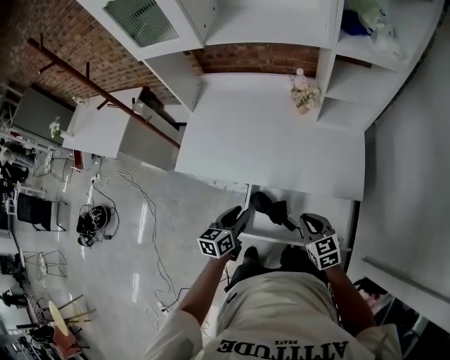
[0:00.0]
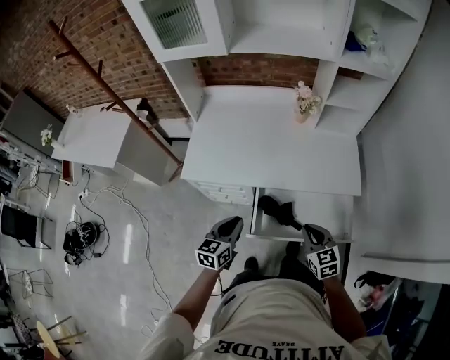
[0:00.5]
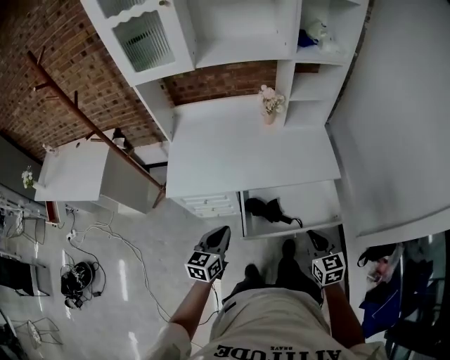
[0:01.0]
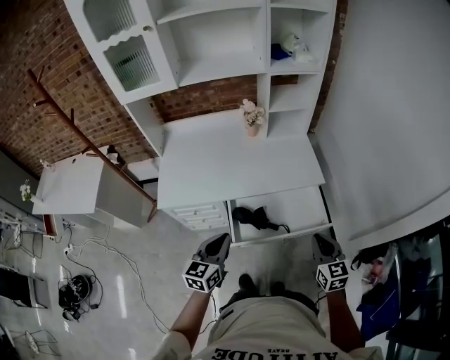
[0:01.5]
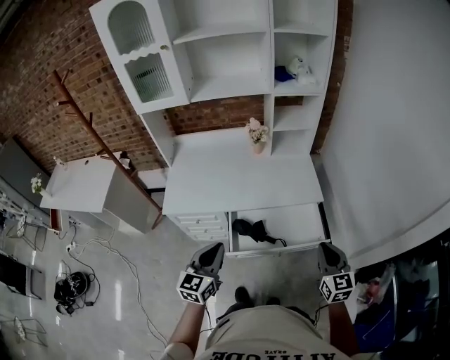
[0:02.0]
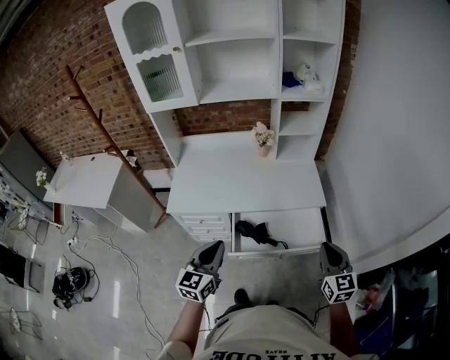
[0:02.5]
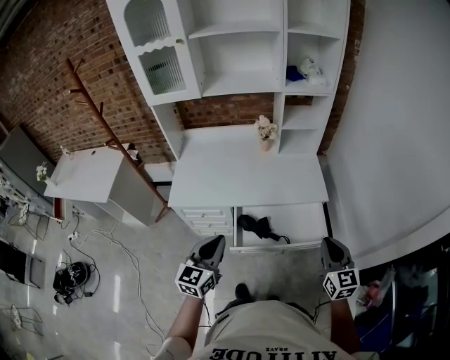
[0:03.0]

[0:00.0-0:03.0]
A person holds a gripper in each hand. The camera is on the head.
0.0 to 1.5 s: The right gripper ends up approximately 25 cm from where it was, and rotates some 40 degrees; the left gripper shifts some 15 cm upward, swivels some 30 degrees, and closes.
1.5 to 3.0 s: The grippers both shift upward by about 10 cm.

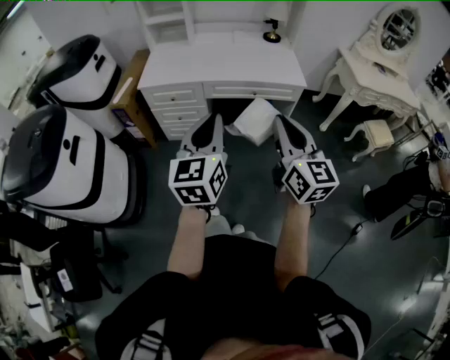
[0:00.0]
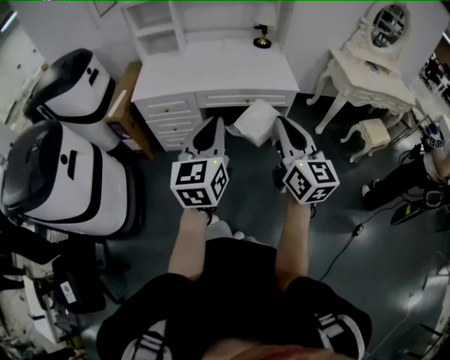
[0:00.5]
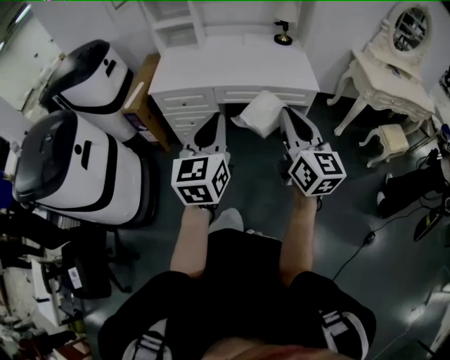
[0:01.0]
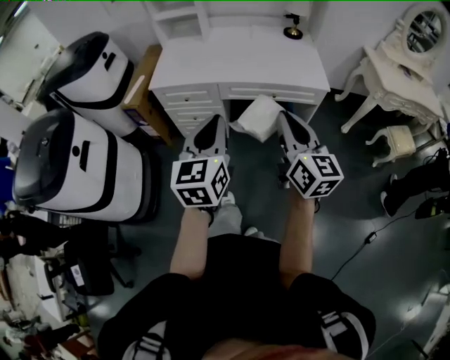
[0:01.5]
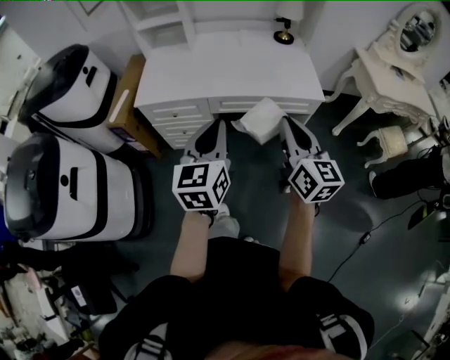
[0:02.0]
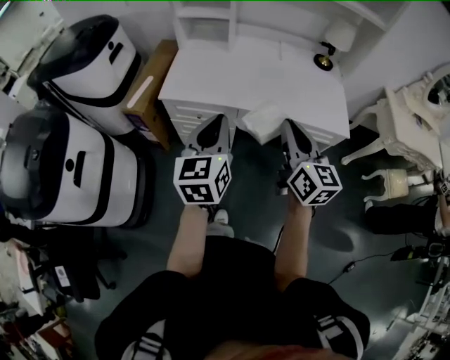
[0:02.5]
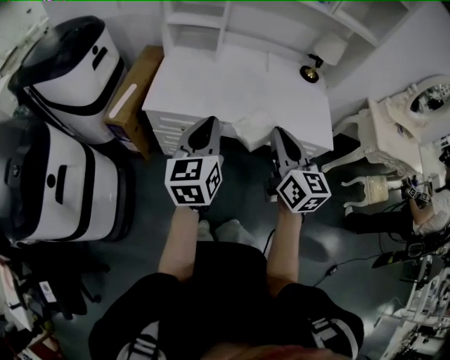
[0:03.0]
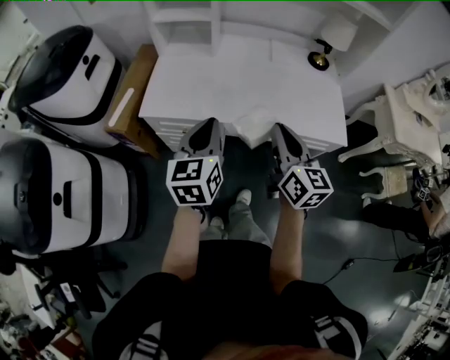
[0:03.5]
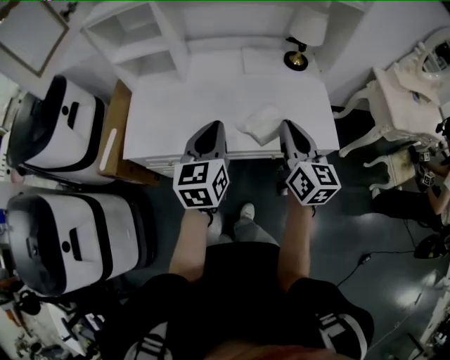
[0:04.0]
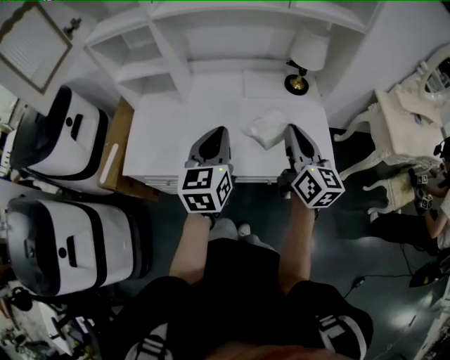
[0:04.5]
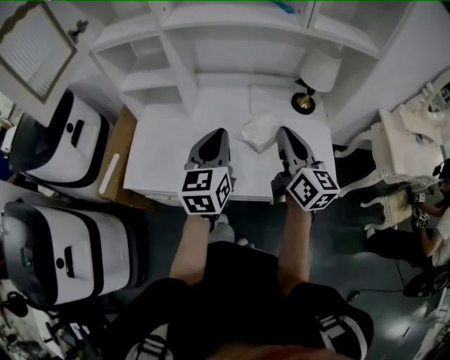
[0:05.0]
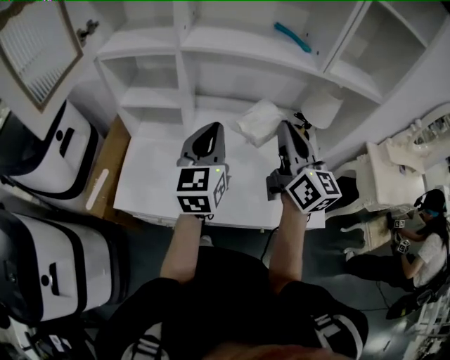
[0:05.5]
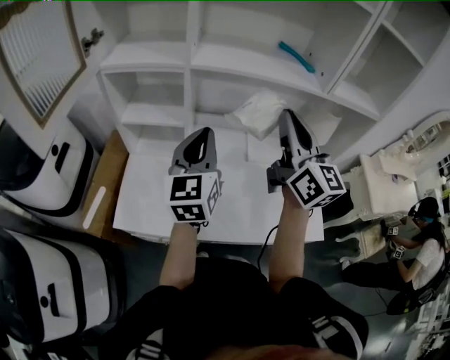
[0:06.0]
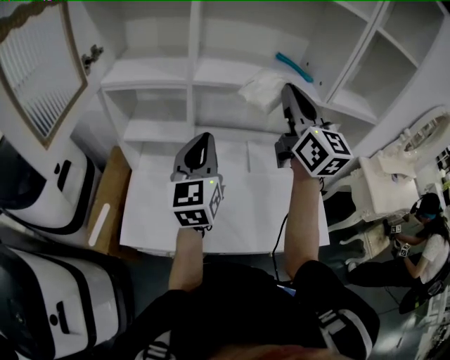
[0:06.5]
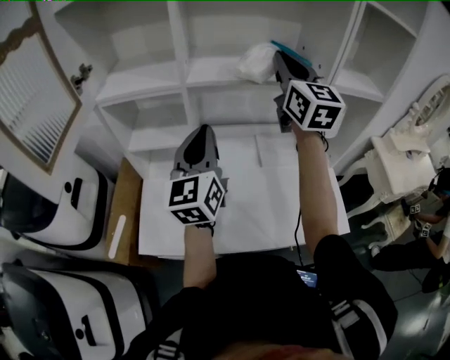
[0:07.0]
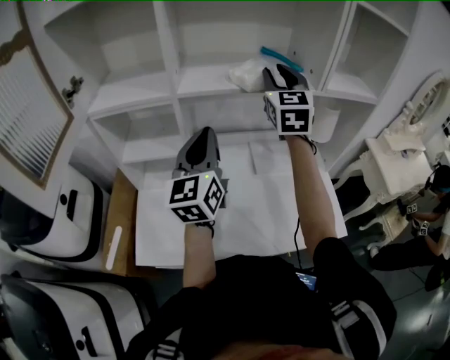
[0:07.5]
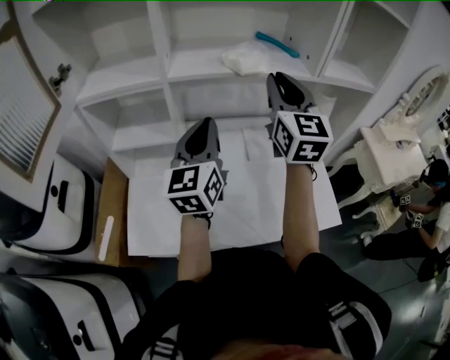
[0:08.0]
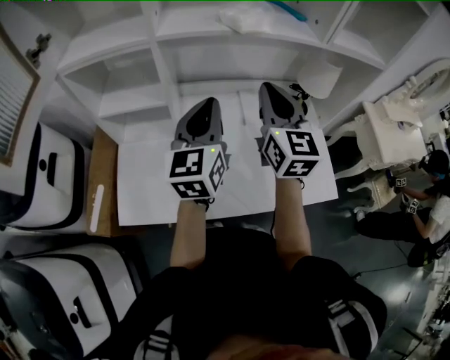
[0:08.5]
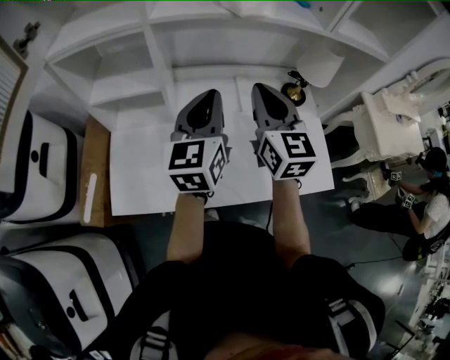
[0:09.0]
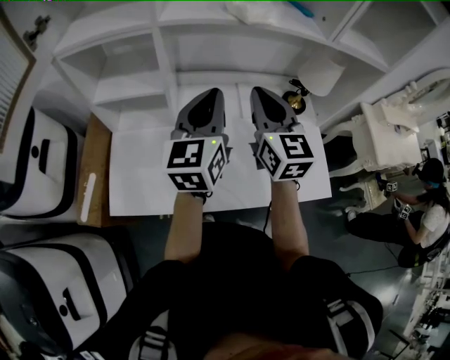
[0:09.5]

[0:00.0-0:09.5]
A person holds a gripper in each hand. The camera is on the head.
0.0 to 2.0 s: Both grippers move forward, some 20 cm.
2.0 to 4.0 s: The grippers both shift forward by roughly 35 cm.
4.0 to 5.5 s: Both grippers move forward and upward, approximately 25 cm.
5.5 to 7.5 s: The left gripper is displaced forward and to the left by about 10 cm. Meanwhile the right gripper goes about 25 cm forward and upward, rotates roughly 40 degrees, and opens up.
7.5 to 9.5 s: The right gripper moves downward and backward, approximately 20 cm, changes its angle by about 20 degrees, and closes; the left gripper moves downward and to the right, about 10 cm.

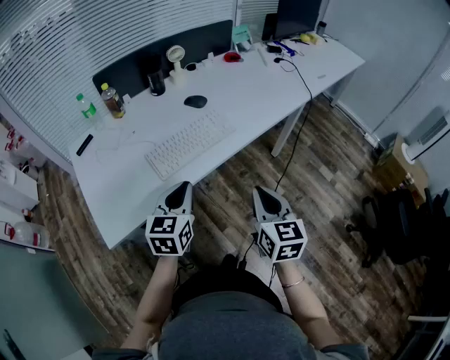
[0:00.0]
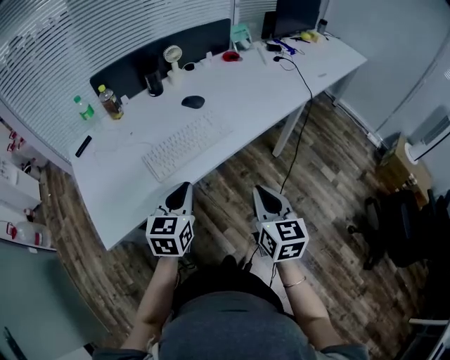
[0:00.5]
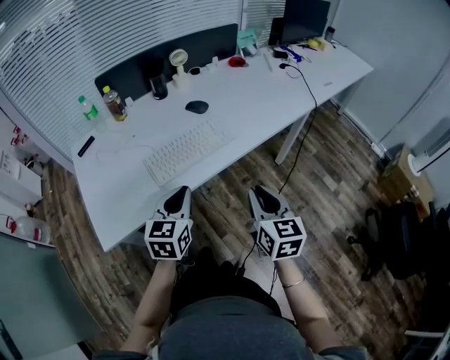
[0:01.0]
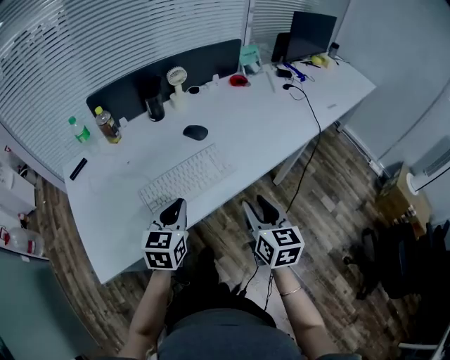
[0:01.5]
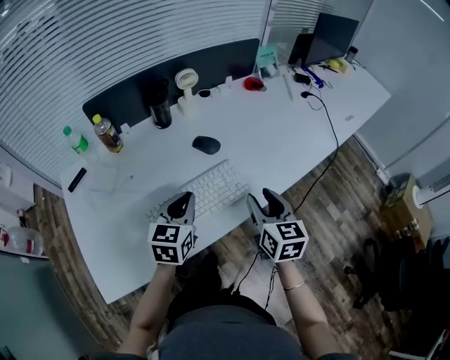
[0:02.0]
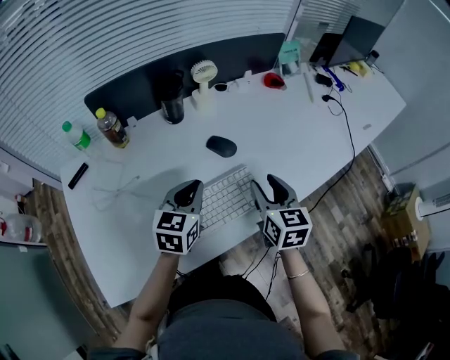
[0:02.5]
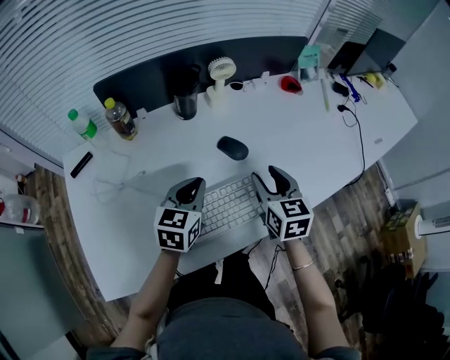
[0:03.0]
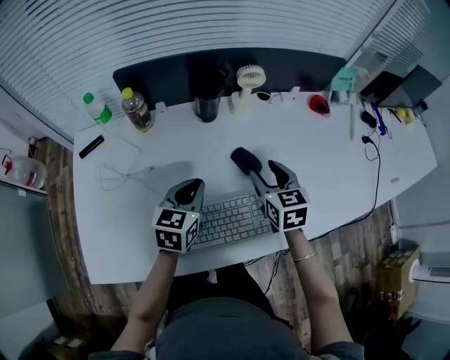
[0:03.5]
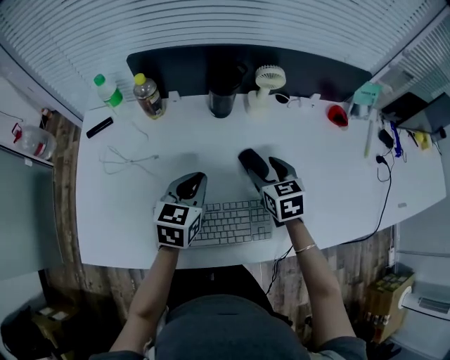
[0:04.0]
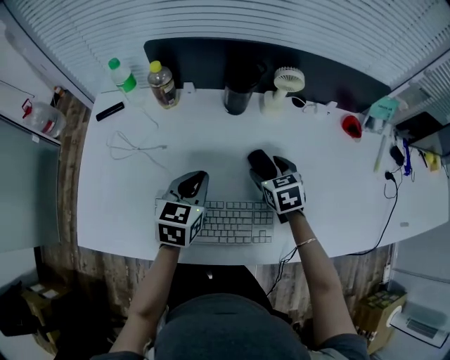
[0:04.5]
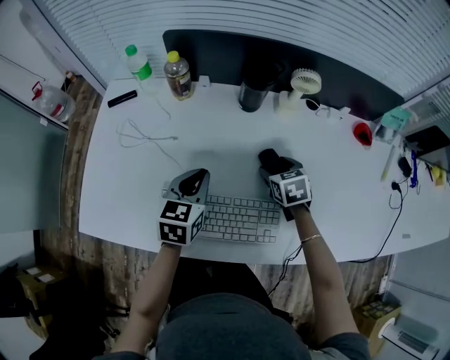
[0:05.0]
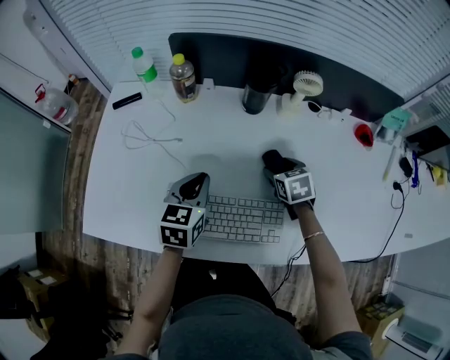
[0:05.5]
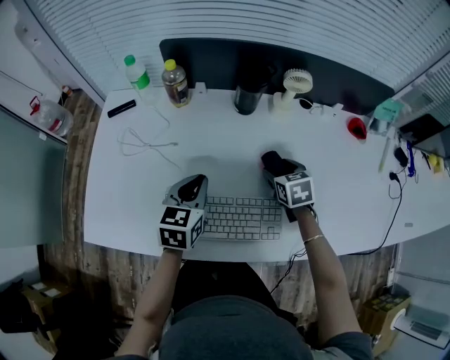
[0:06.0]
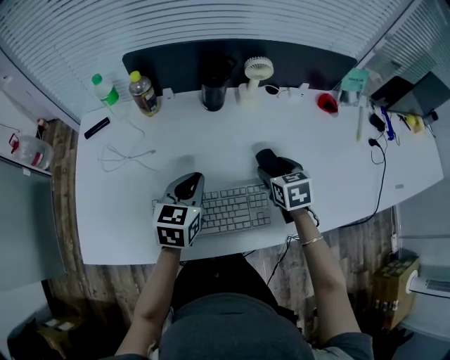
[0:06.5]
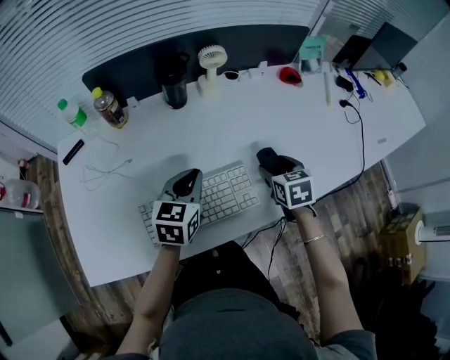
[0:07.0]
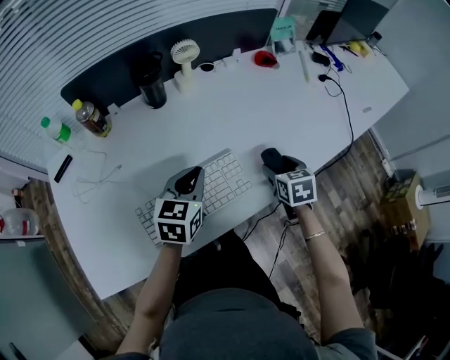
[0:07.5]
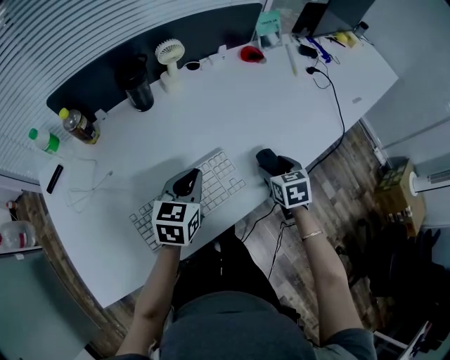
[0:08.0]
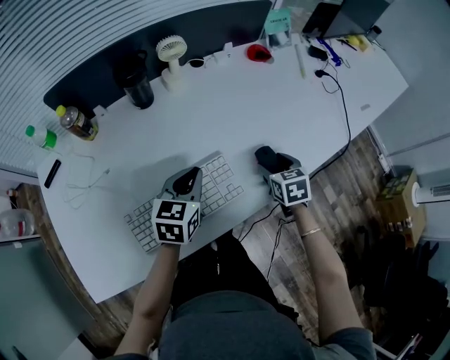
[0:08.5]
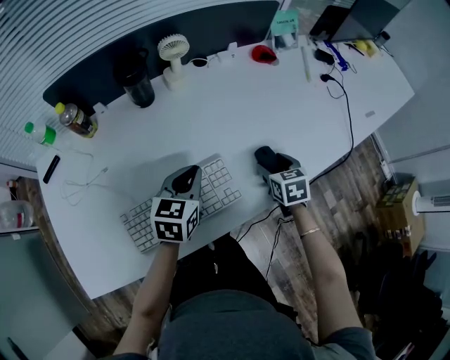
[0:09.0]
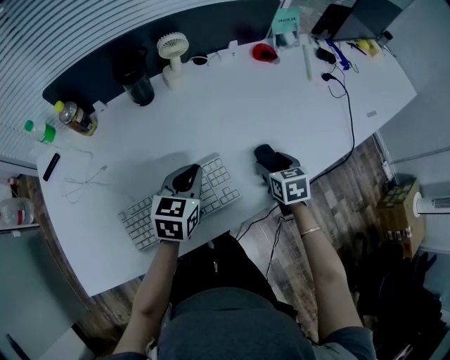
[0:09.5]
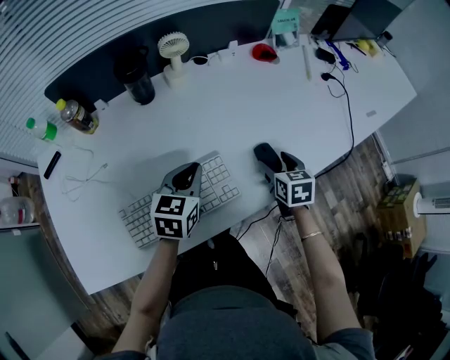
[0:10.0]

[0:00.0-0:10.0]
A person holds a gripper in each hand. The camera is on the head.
0.0 to 2.0 s: The two grippers go roughly 25 cm forward. The right gripper opens.
2.0 to 4.0 s: The right gripper ends up approximately 30 cm from where it was, and changes its angle by some 40 degrees. Meanwhile the left gripper moves roughly 15 cm, and turns by about 20 degrees.
4.0 to 6.0 s: The right gripper shifts approximately 5 cm downward; the left gripper changes place by approximately 5 cm.
6.0 to 8.0 s: The right gripper shifts by some 25 cm, and rotates approximately 40 degrees; the left gripper shifts by about 15 cm, and changes its angle by some 40 degrees.
8.0 to 10.0 s: The right gripper changes place by roughly 5 cm.

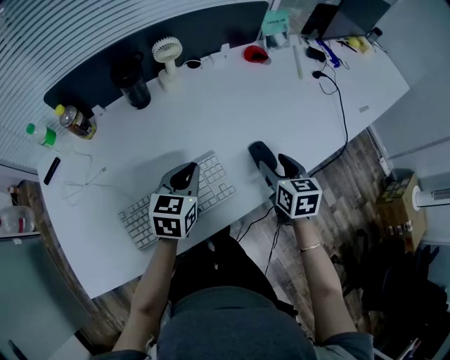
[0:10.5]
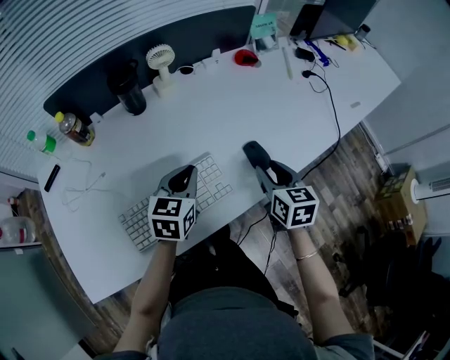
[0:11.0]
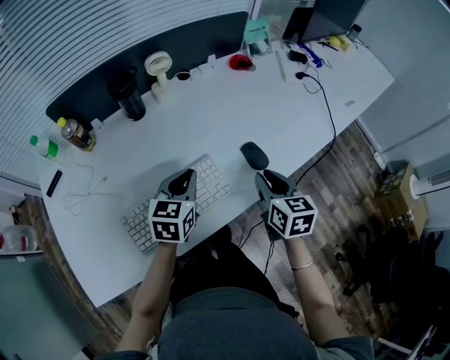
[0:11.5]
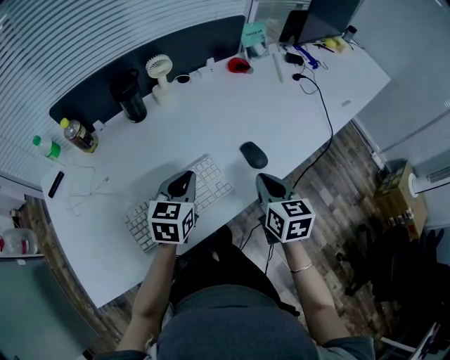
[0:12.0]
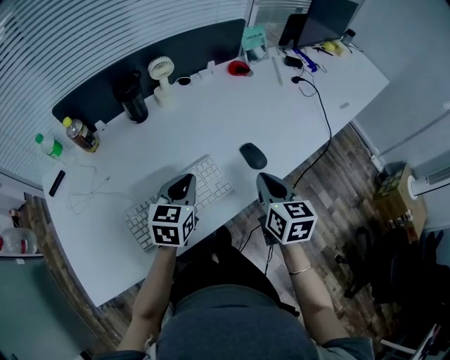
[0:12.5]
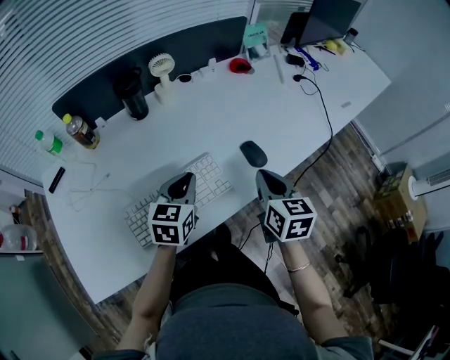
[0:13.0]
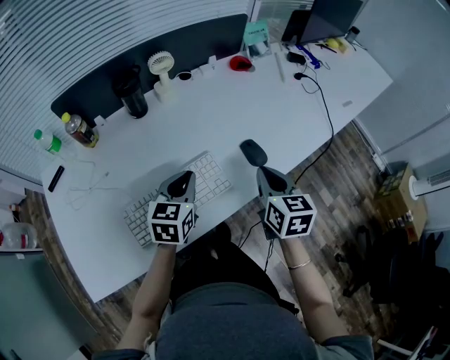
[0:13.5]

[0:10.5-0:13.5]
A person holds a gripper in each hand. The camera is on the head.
10.5 to 12.0 s: The right gripper goes about 10 cm backward and upward, and closes up.
12.0 to 13.5 s: The grippers stay close to where they were, moving slightly.

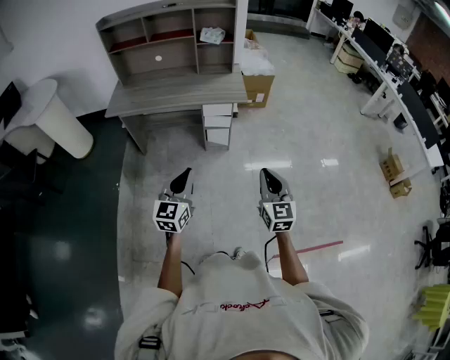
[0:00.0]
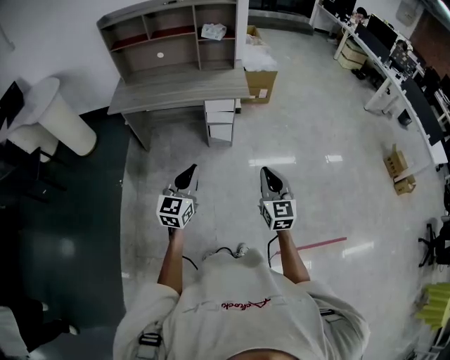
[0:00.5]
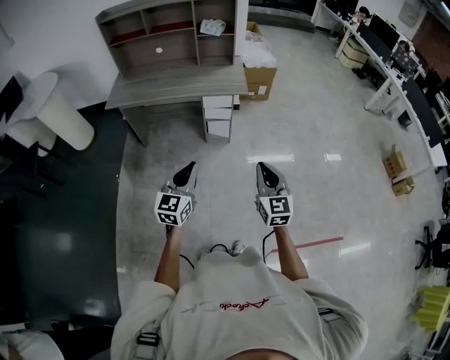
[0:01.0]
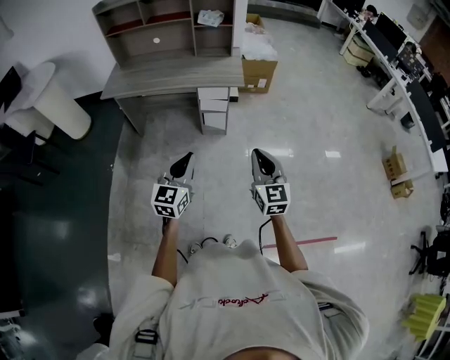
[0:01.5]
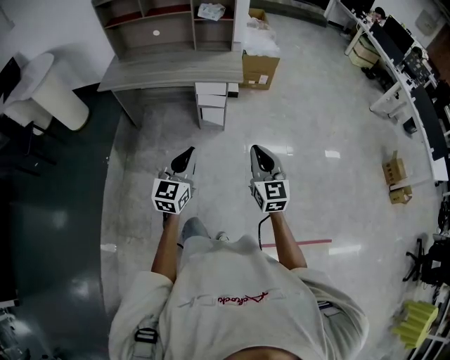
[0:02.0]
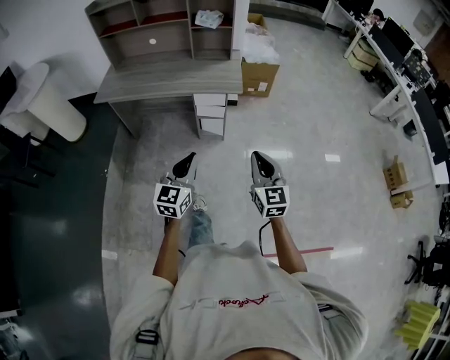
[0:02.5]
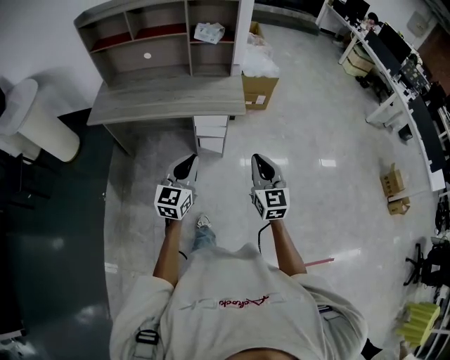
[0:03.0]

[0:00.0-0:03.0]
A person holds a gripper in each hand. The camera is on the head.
0.0 to 1.5 s: The left gripper shifts approximately 10 cm to the right.
1.5 to 3.0 s: Both grippers travel together forward, roughly 20 cm.
